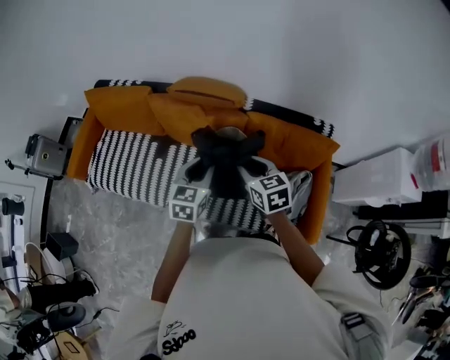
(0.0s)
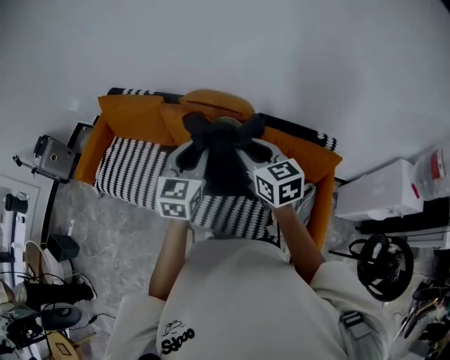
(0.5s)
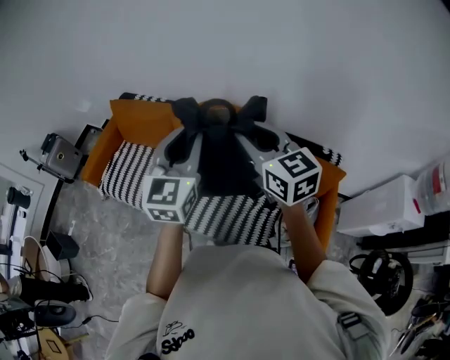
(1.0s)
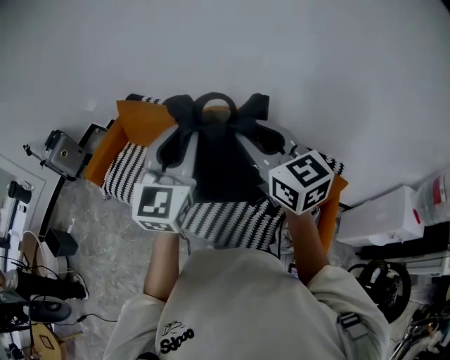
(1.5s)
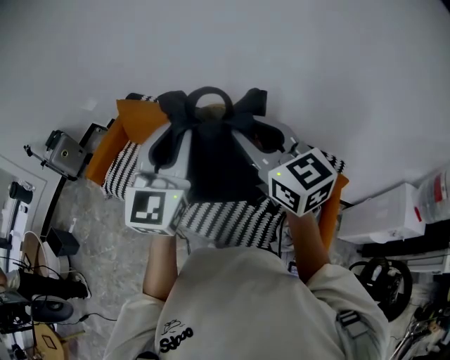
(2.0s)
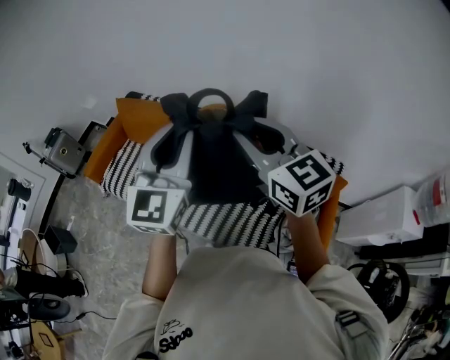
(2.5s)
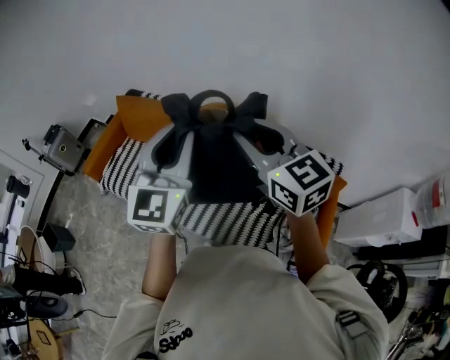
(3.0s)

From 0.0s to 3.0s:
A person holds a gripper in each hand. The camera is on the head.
From 0.0s to 1.5s: The two grippers go about 30 cm upward. The left gripper tips its fingers upward by some 30 degrees, while the right gripper swivels roughly 30 degrees.
From 1.5s to 3.0s: The grippers make only small movements.

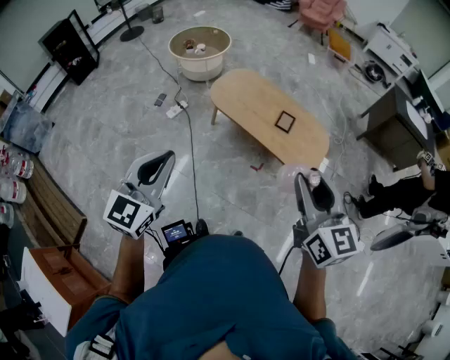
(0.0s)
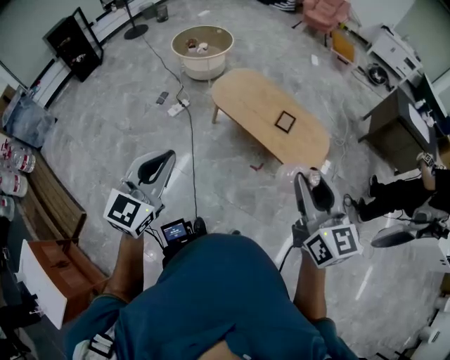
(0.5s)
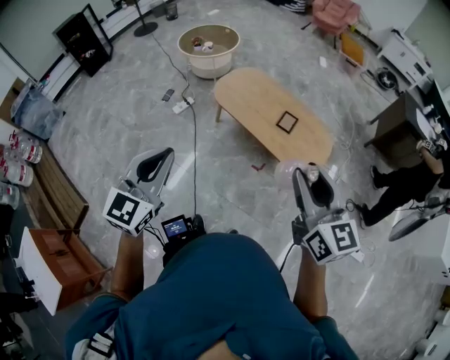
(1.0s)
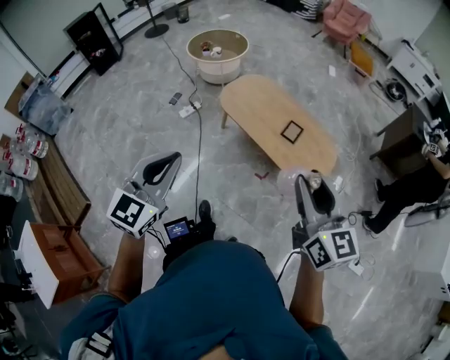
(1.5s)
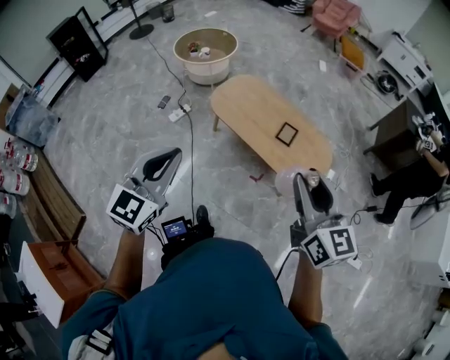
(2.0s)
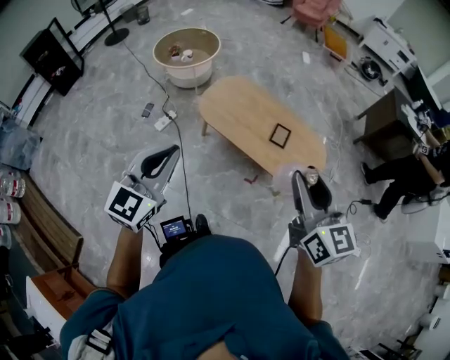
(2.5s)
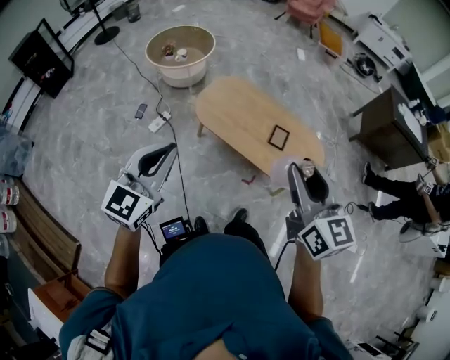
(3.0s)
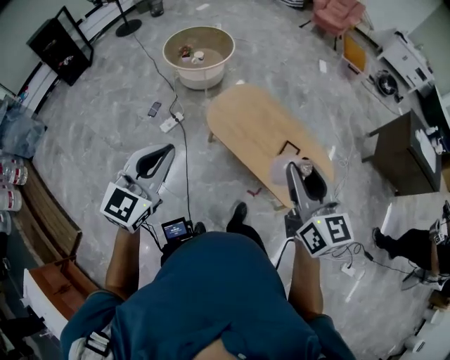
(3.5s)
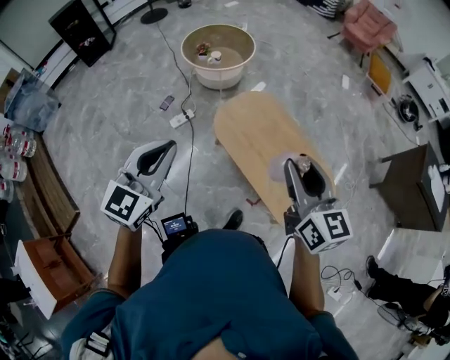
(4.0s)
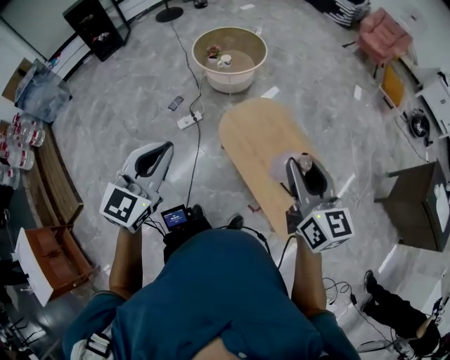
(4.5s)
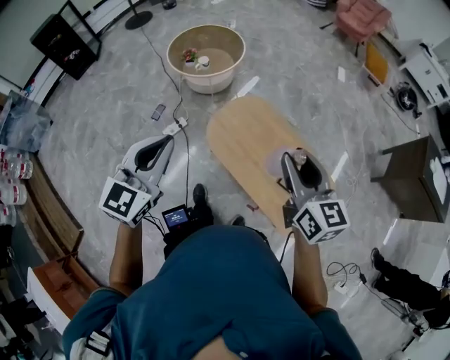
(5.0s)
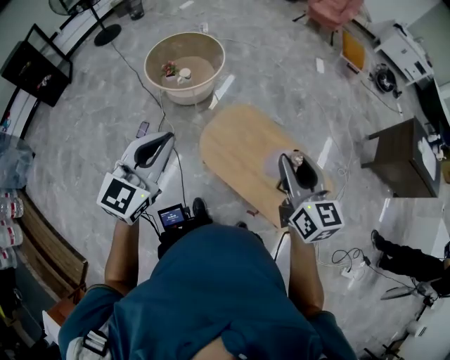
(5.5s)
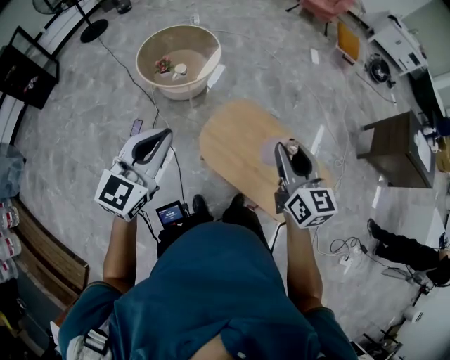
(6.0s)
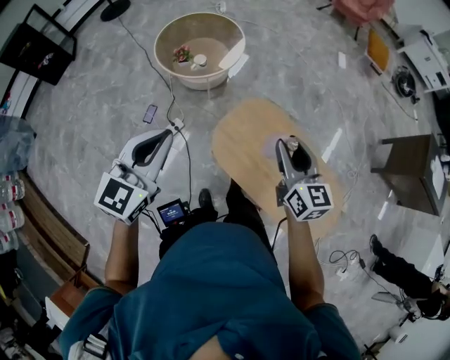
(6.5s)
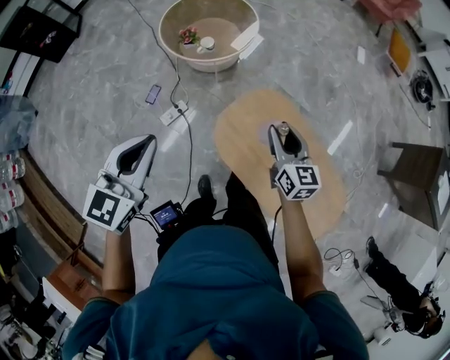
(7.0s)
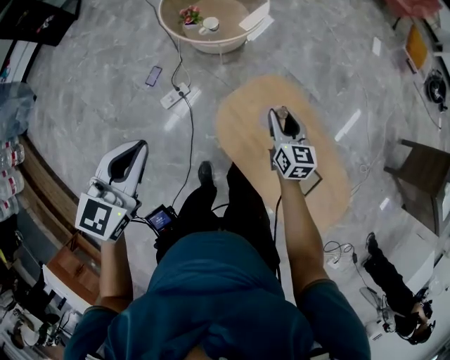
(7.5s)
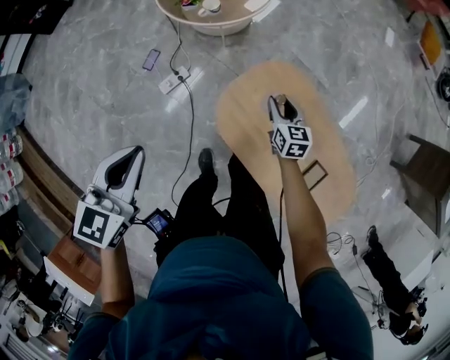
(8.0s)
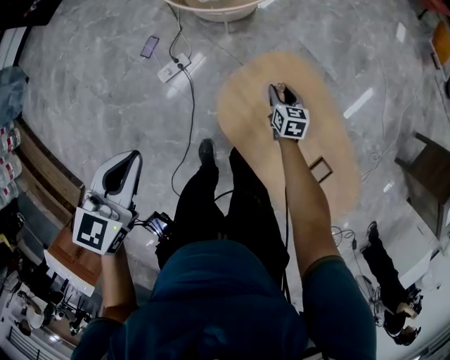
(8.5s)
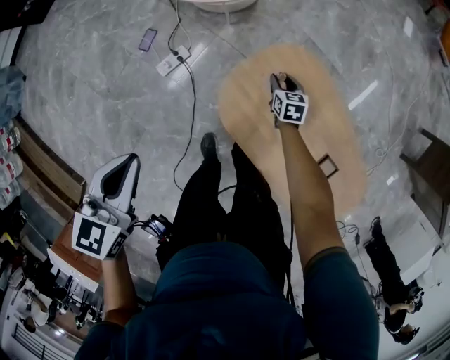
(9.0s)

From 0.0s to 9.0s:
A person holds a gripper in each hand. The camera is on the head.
From 0.0s to 2.0s: The right gripper goes roughly 10 cm forward. Meanwhile the left gripper is displaced forward and to the right by some 10 cm.
From 2.0s to 4.5s: The two grippers go roughly 35 cm forward.
From 4.5s to 7.0s: The right gripper goes about 40 cm forward, downward and to the left; the left gripper moves forward and to the left, about 35 cm.
From 7.0s to 9.0s: The left gripper heads downward, covering some 15 cm, and rotates about 20 degrees. Meanwhile the right gripper is displaced downward by roughly 40 cm, and tips its fingers downward by about 30 degrees.

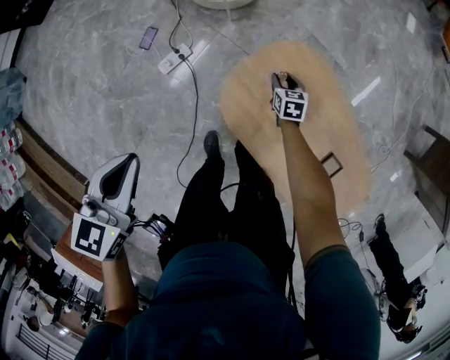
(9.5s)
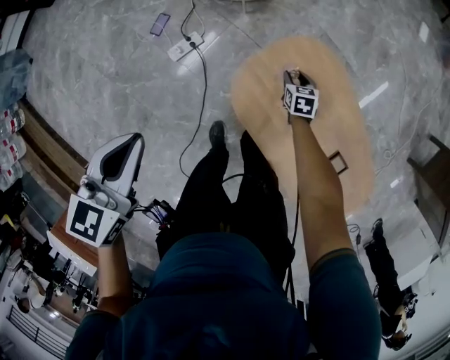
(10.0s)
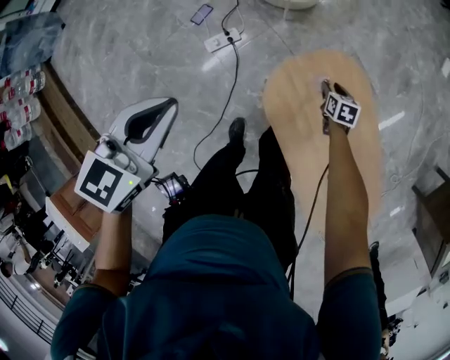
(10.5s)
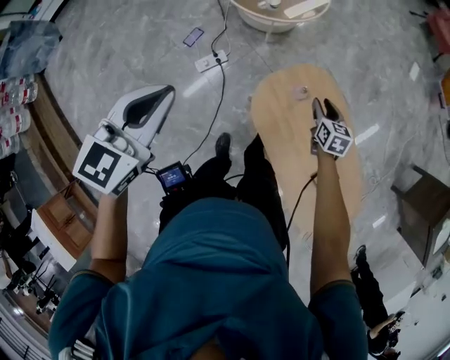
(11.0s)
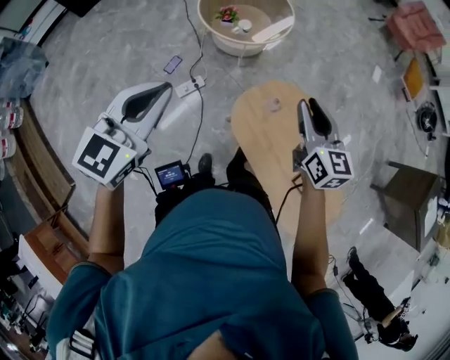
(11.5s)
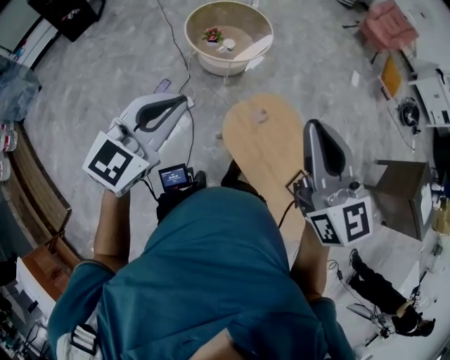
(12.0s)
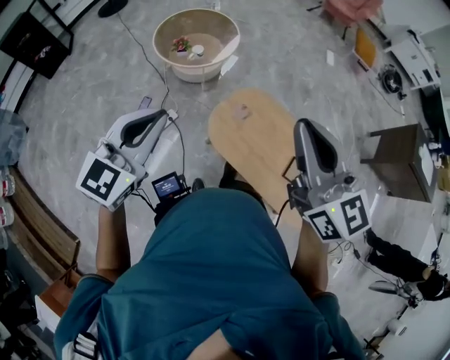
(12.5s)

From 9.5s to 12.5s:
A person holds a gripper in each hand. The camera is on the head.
From 9.5s to 11.0s: The left gripper is displaced upward by approximately 15 cm; the right gripper moves upward, roughly 25 cm.
From 11.0s to 12.5s: The right gripper moves upward and backward, about 60 cm, tilts its fingers approximately 40 degrees upward, and closes. Meanwhile the left gripper travels upward, backward and to the right by approximately 15 cm, and swivels approximately 30 degrees.

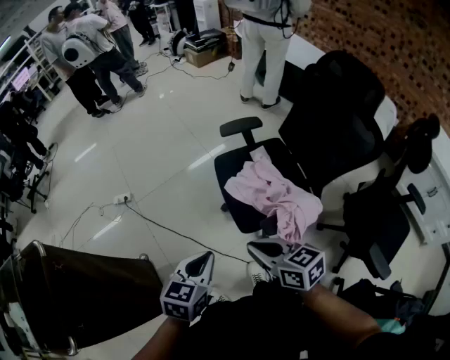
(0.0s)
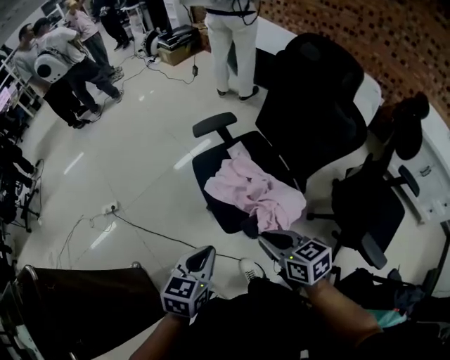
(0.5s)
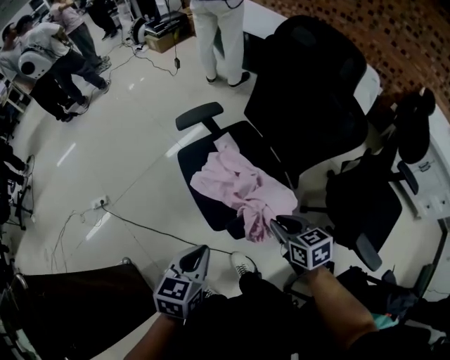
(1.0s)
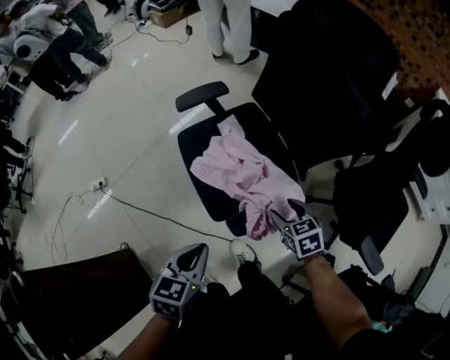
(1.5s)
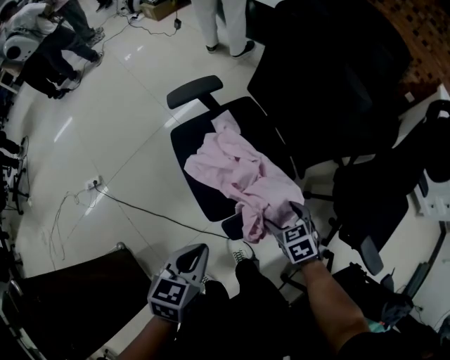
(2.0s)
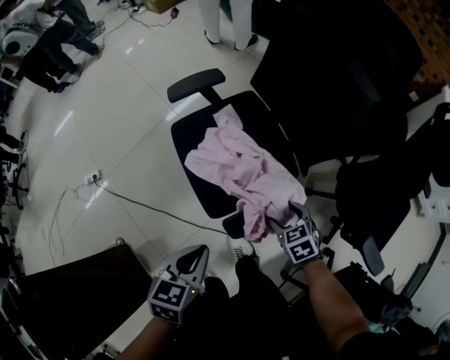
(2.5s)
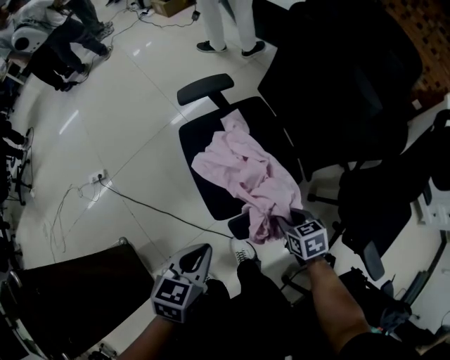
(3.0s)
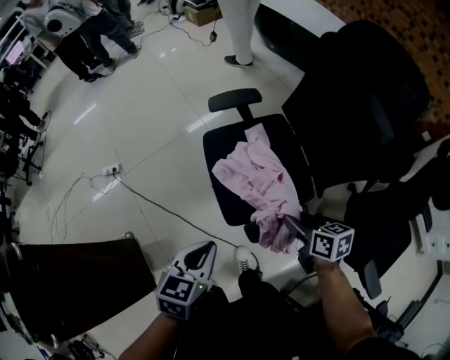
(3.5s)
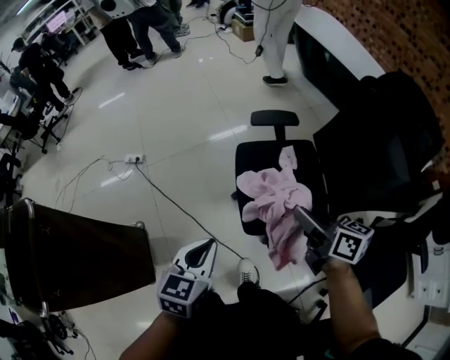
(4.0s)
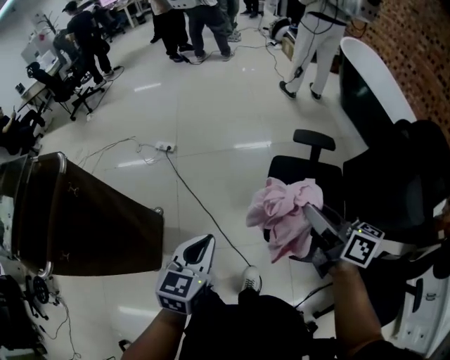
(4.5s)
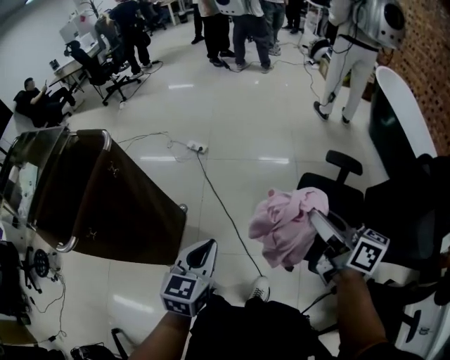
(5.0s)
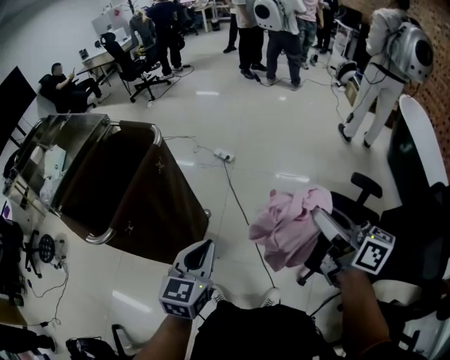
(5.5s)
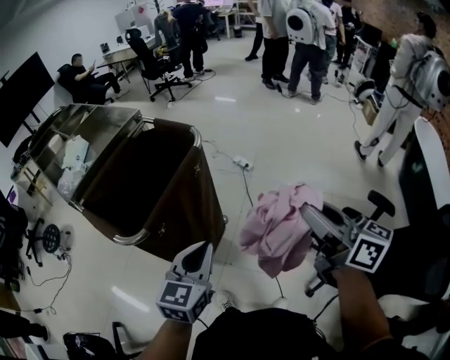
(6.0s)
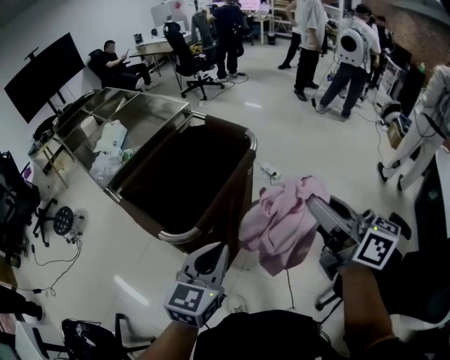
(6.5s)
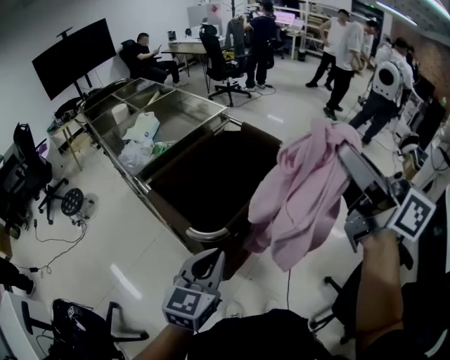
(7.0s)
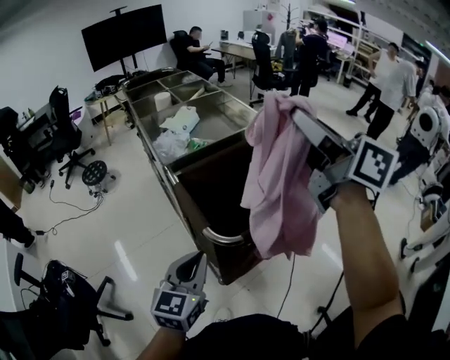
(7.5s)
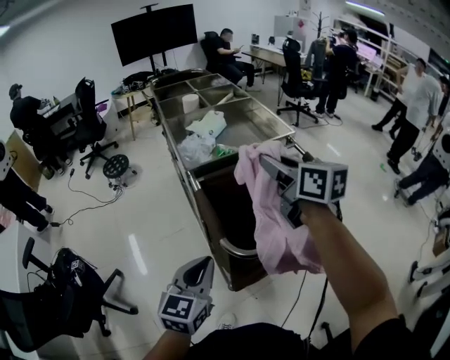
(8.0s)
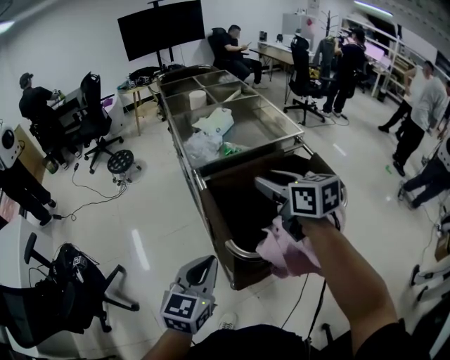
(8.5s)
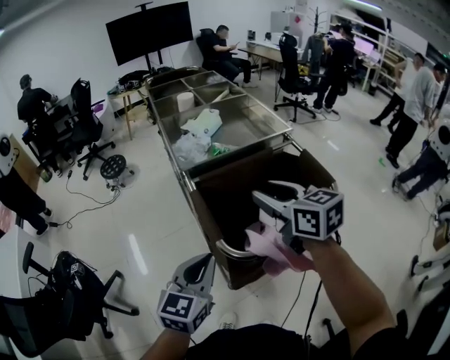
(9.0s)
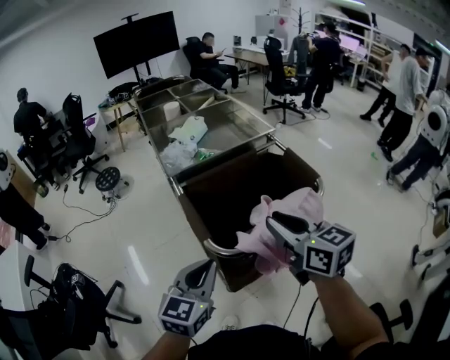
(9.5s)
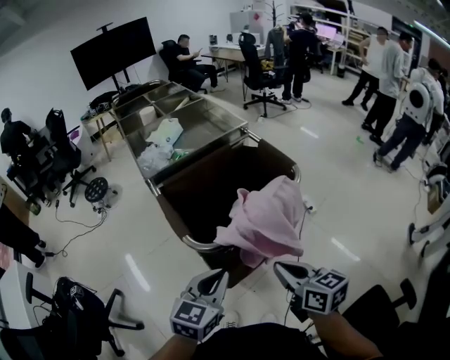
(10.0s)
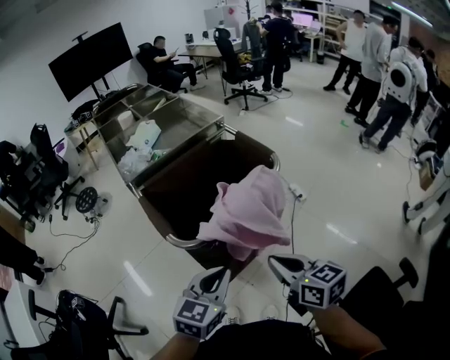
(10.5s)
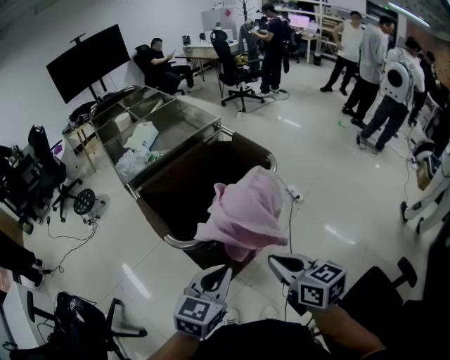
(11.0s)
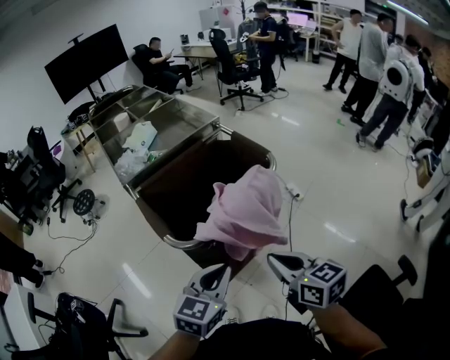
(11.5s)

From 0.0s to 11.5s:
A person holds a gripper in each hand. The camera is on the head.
From 0.0s to 2.0s: The right gripper goes some 35 cm downward, to the right and forward, points its fingers about 30 degrees further downward, and opens; the left gripper travels to the right, forward and downward by roughly 20 cm.
From 2.0s to 4.0s: The right gripper goes approximately 25 cm upward, angles its fingers upward, by approximately 40 degrees, and closes up, while the left gripper shifts by some 15 cm, and changes its angle by about 30 degrees.
From 4.0s to 6.0s: The two grippers travel together, some 50 cm. The right gripper changes its angle by about 40 degrees. Meanwhile the left gripper turns by about 50 degrees.
From 6.0s to 7.5s: The left gripper shifts by some 25 cm, and rotates some 30 degrees; the right gripper ends up roughly 40 cm from where it was, and rotates roughly 30 degrees.
From 7.5s to 9.5s: The right gripper is displaced downward by roughly 25 cm, and swivels some 20 degrees.
From 9.5s to 11.5s: The left gripper heads to the right, covering some 15 cm. The right gripper goes approximately 20 cm backward, downward and to the right.
